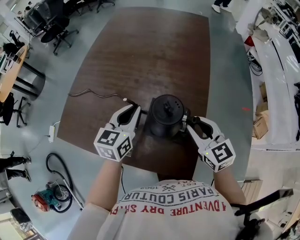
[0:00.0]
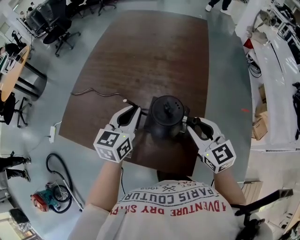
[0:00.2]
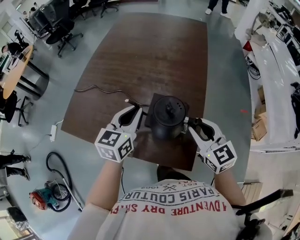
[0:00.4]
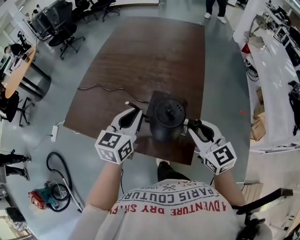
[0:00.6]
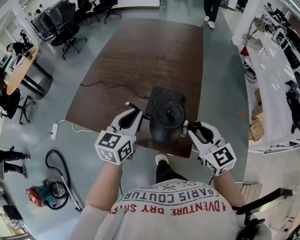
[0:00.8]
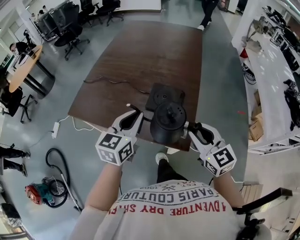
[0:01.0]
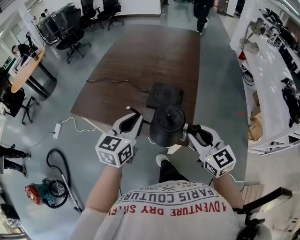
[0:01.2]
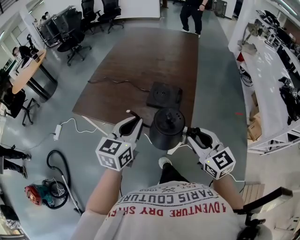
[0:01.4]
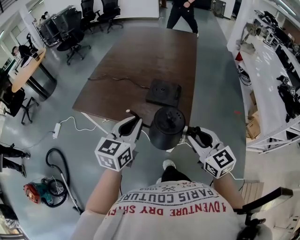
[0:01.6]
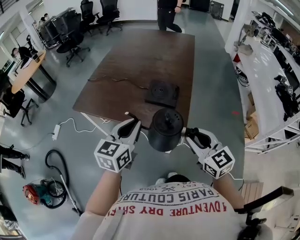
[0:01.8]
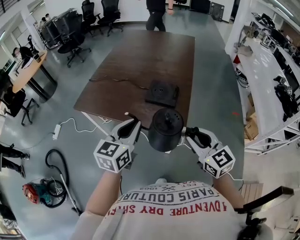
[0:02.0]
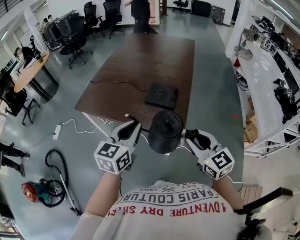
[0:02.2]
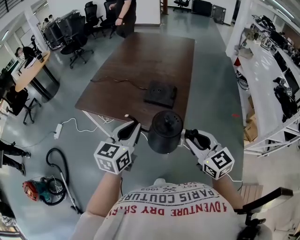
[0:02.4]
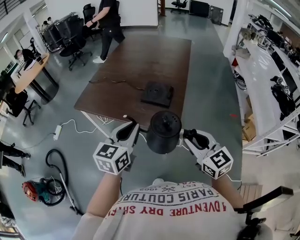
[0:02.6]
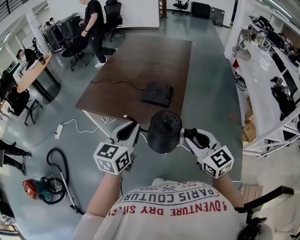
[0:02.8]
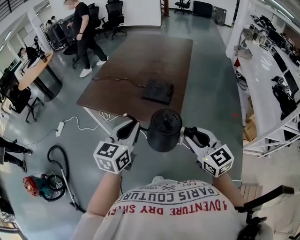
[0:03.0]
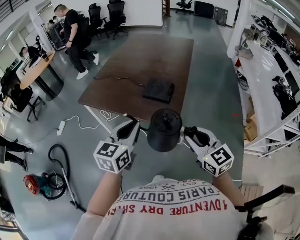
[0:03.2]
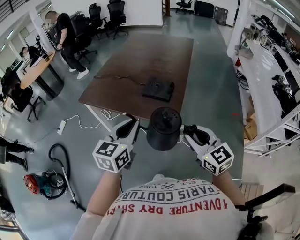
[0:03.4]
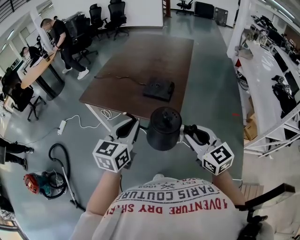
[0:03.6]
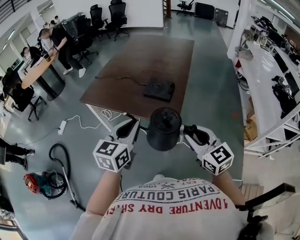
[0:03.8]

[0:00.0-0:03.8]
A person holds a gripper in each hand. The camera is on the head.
0:00.0 to 0:01.2: The grippers both shift backward by about 20 cm.
0:01.2 to 0:02.6: The two grippers go some 10 cm backward.
0:02.6 to 0:03.8: The left gripper heads backward, covering about 5 cm.

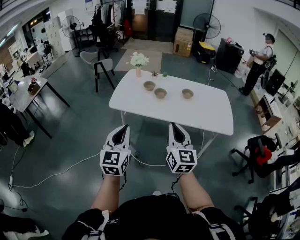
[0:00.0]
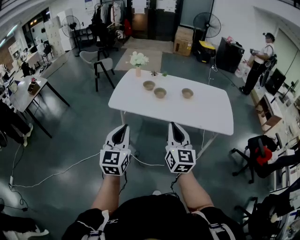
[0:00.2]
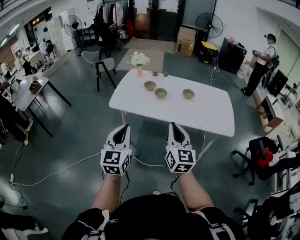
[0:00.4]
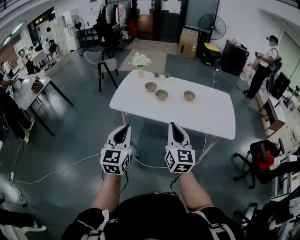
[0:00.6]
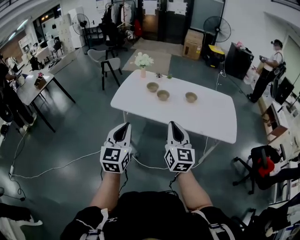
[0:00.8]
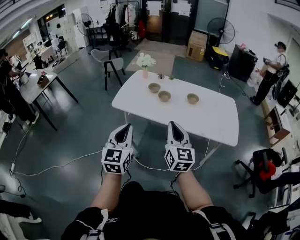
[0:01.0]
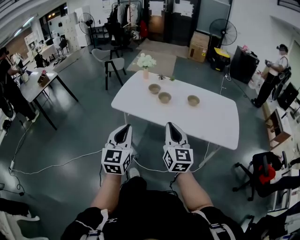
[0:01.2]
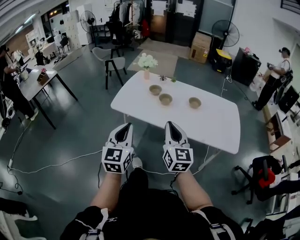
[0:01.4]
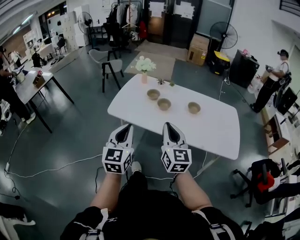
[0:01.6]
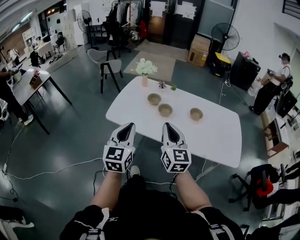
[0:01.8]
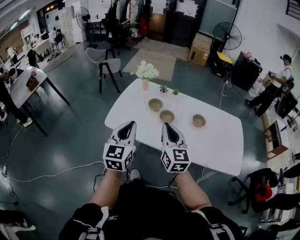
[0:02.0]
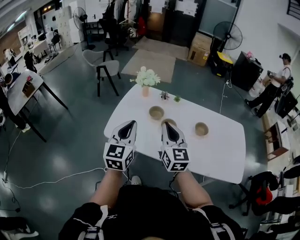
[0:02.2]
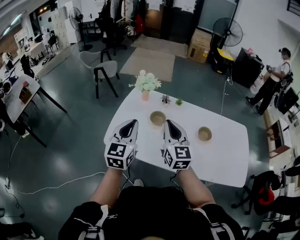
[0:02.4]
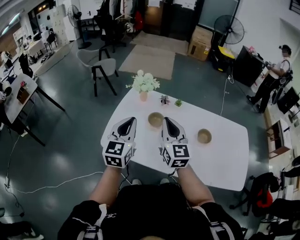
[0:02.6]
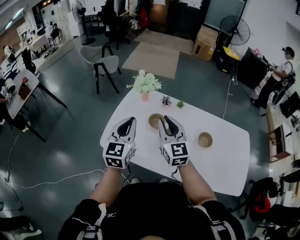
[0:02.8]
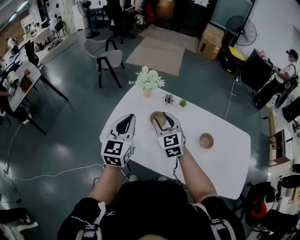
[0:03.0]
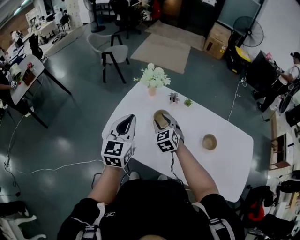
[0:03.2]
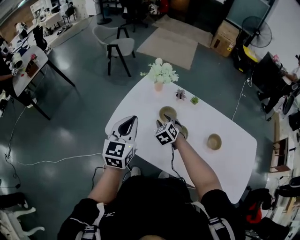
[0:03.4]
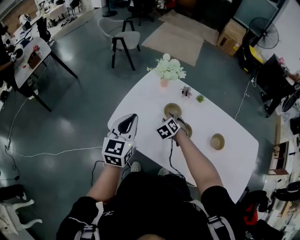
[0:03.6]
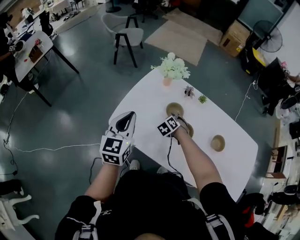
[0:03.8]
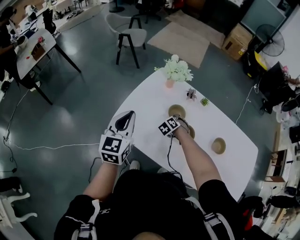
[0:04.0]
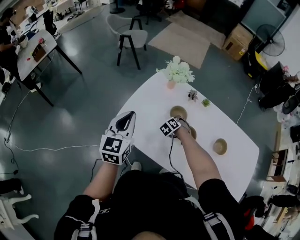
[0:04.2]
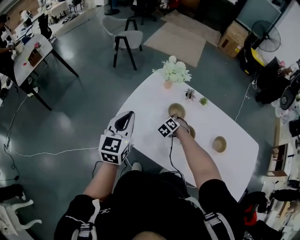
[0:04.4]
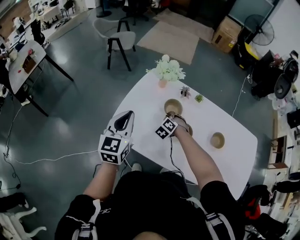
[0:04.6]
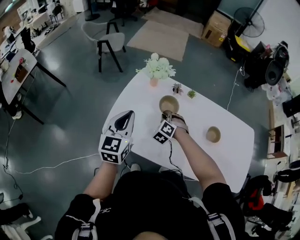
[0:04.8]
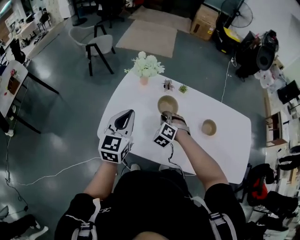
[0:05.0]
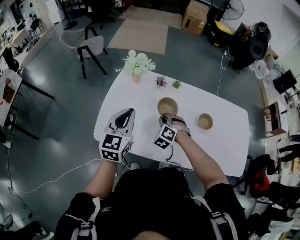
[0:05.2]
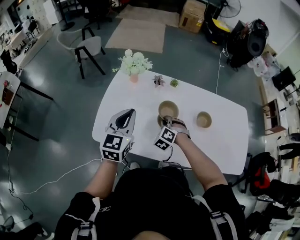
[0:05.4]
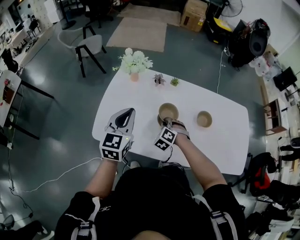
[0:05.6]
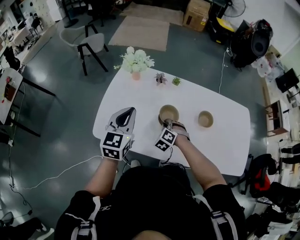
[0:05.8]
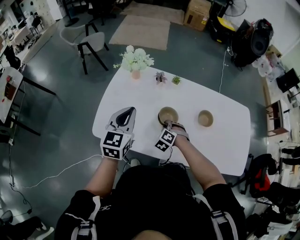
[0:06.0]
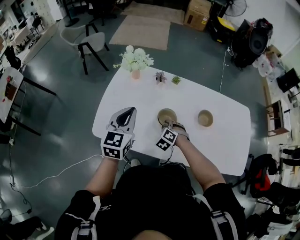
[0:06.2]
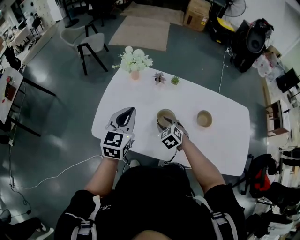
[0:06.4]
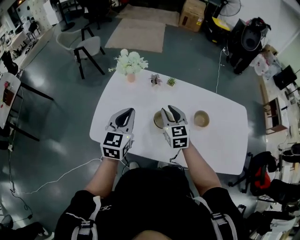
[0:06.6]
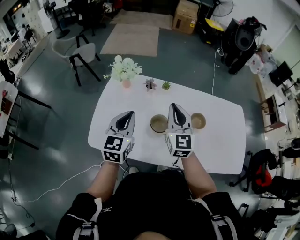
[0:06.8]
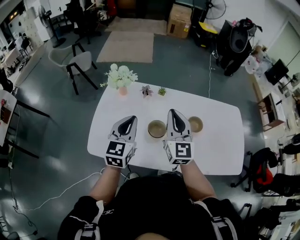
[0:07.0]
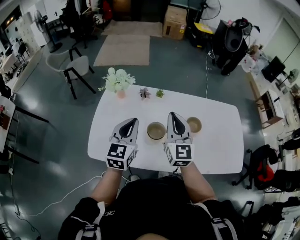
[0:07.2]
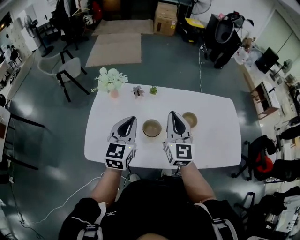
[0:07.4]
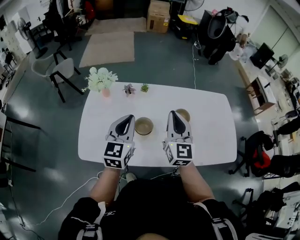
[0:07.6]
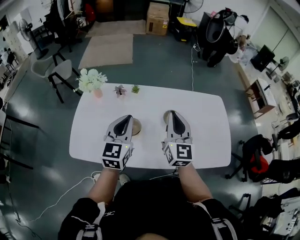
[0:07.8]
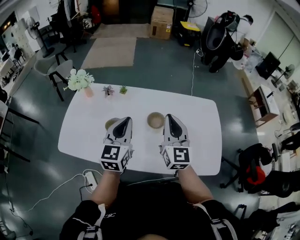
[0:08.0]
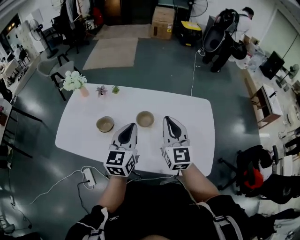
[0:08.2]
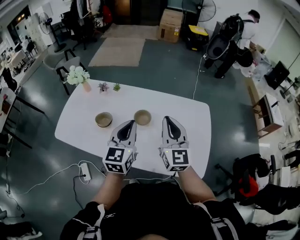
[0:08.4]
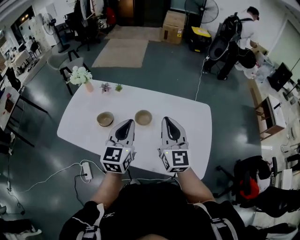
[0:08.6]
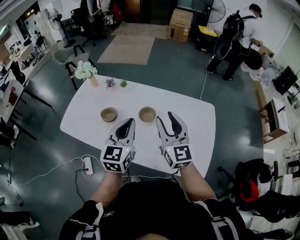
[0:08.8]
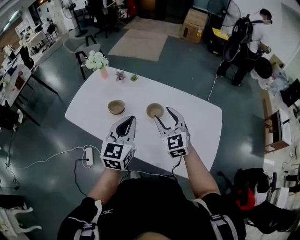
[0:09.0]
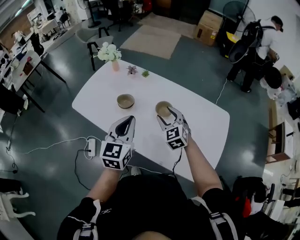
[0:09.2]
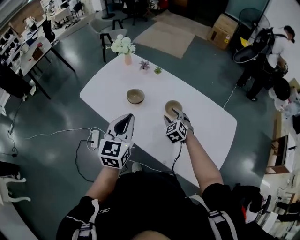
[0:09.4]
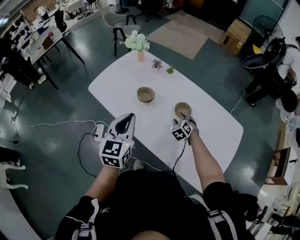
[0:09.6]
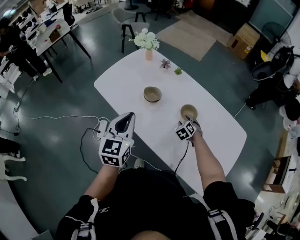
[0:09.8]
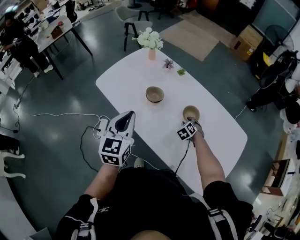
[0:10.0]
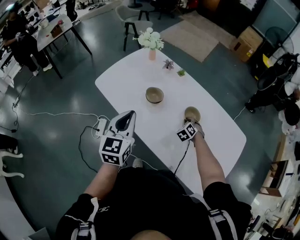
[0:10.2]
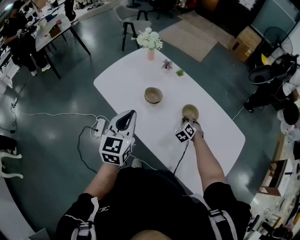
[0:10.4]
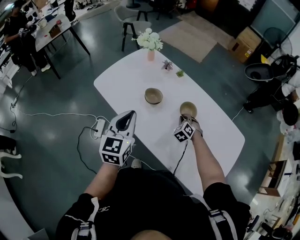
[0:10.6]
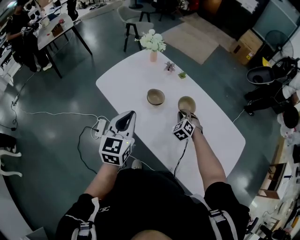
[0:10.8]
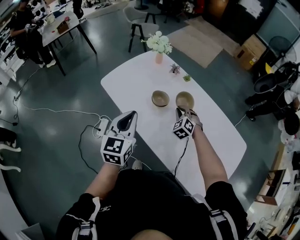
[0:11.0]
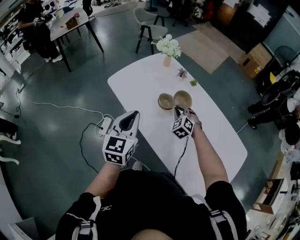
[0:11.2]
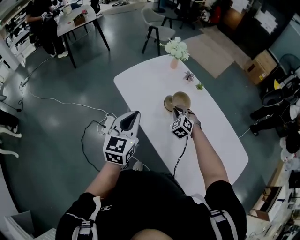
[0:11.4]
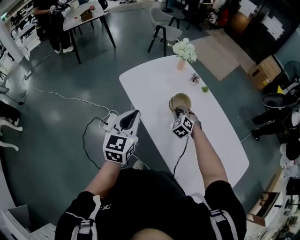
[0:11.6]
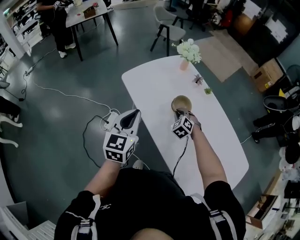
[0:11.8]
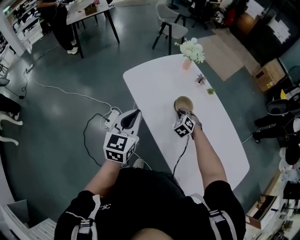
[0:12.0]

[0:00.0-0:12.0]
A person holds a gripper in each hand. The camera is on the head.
0:00.0 to 0:01.6: The left gripper is displaced forward and to the right by approximately 15 cm. The right gripper is displaced forward by about 15 cm.
0:01.6 to 0:03.0: Both grippers are carried forward, some 50 cm. The right gripper turns by approximately 30 degrees, and opens its fingers.
0:03.0 to 0:04.4: The left gripper moves to the left and downward, approximately 15 cm; the right gripper travels downward by about 25 cm, tips its fingers downward by approximately 40 degrees, and closes its fingers.
0:04.4 to 0:06.0: The right gripper goes about 15 cm to the right and backward. The left gripper is displaced to the right and forward by approximately 15 cm.
0:06.0 to 0:07.6: The left gripper moves to the right, about 10 cm. The right gripper is displaced upward and to the right by roughly 35 cm, tips its fingers upward by about 60 degrees, and opens, then closes once more.
0:07.6 to 0:09.0: The left gripper shifts by roughly 35 cm, and rotates roughly 20 degrees. The right gripper moves approximately 30 cm, changes its angle by some 40 degrees, and opens.
0:09.0 to 0:10.4: The left gripper travels to the left by about 20 cm, and turns by approximately 20 degrees. The right gripper heads downward and forward, covering some 30 cm, points its fingers about 40 degrees further downward, and closes its fingers.
0:10.4 to 0:12.0: The left gripper goes approximately 15 cm to the left, while the right gripper heads to the left, covering roughly 25 cm, and changes its angle by some 20 degrees.

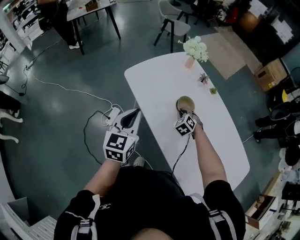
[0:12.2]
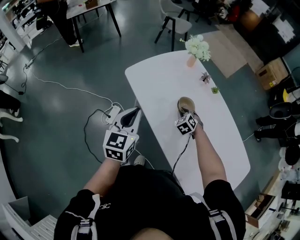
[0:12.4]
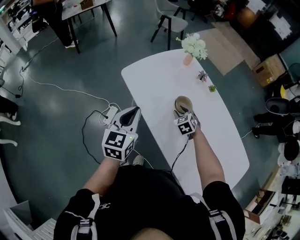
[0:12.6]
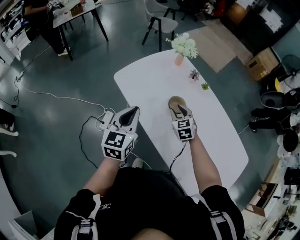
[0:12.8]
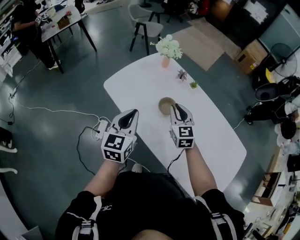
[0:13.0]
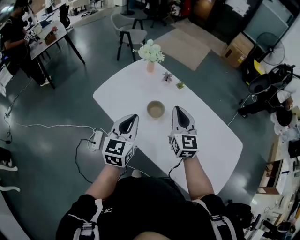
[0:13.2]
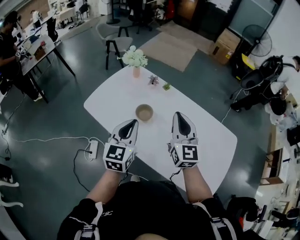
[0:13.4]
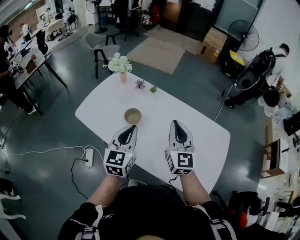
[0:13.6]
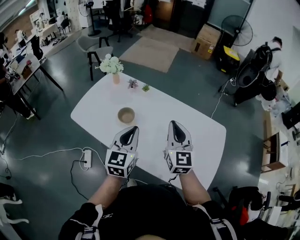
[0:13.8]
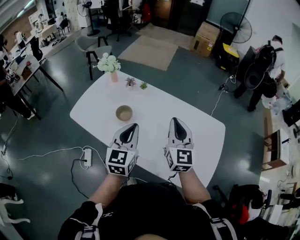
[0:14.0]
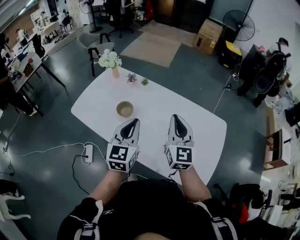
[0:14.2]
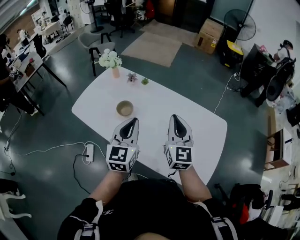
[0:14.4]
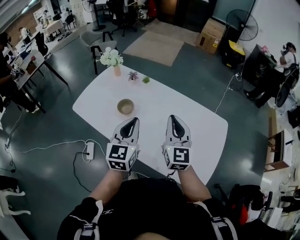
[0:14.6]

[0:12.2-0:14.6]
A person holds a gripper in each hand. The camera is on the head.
0:12.2 to 0:13.4: The left gripper moves to the right, some 15 cm, and changes its angle by about 20 degrees, while the right gripper travels upward, to the right and backward by approximately 40 cm, points its fingers some 50 degrees further upward, and opens, then closes once more.
0:13.4 to 0:14.6: The grippers both shift to the right by roughly 15 cm.

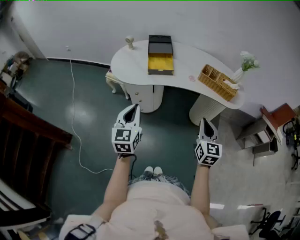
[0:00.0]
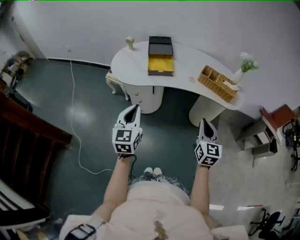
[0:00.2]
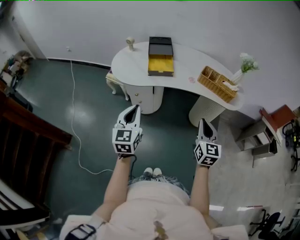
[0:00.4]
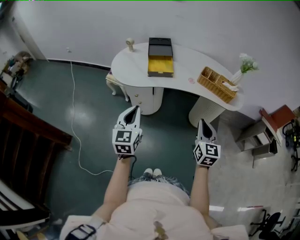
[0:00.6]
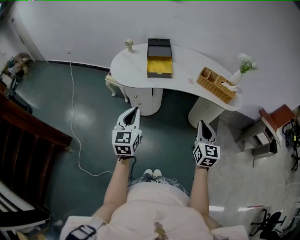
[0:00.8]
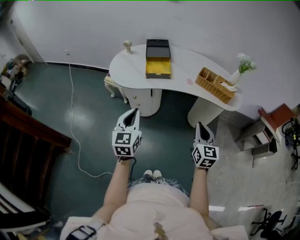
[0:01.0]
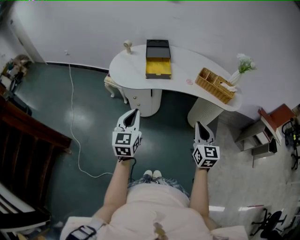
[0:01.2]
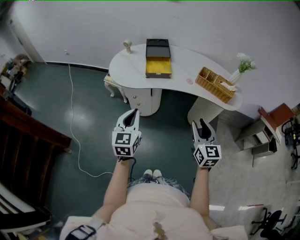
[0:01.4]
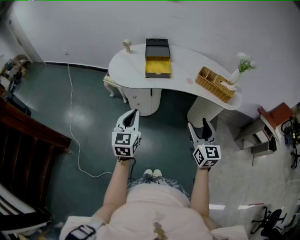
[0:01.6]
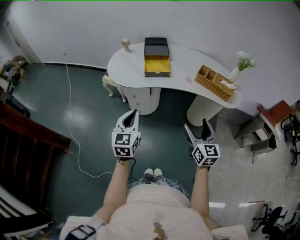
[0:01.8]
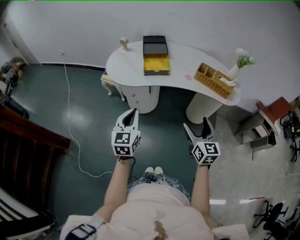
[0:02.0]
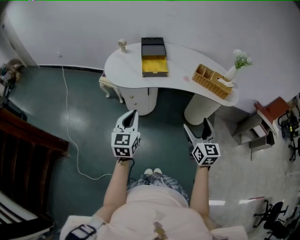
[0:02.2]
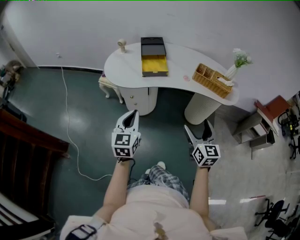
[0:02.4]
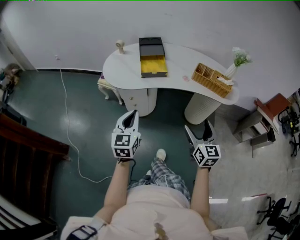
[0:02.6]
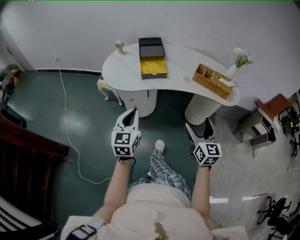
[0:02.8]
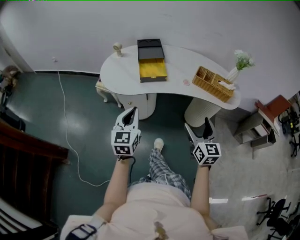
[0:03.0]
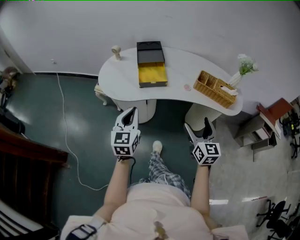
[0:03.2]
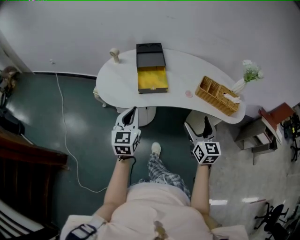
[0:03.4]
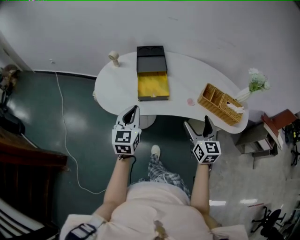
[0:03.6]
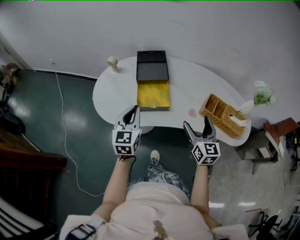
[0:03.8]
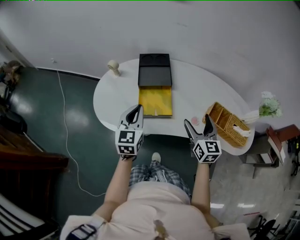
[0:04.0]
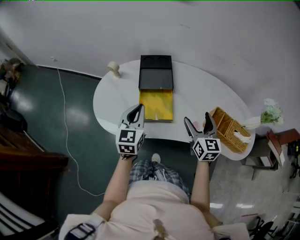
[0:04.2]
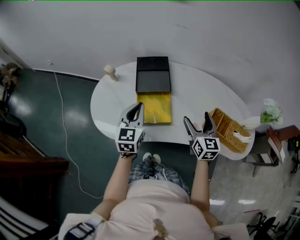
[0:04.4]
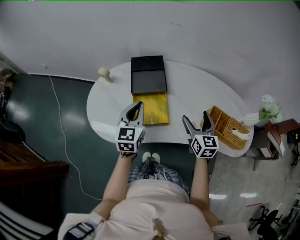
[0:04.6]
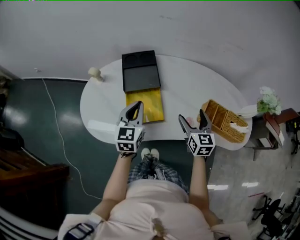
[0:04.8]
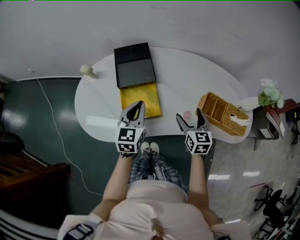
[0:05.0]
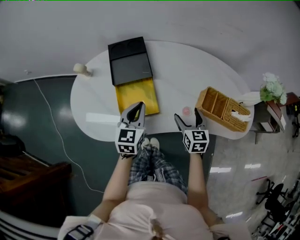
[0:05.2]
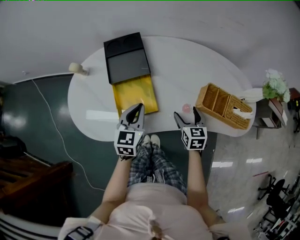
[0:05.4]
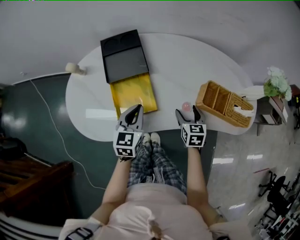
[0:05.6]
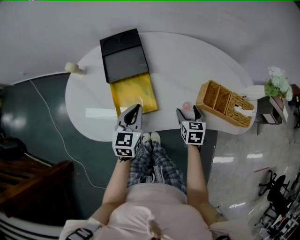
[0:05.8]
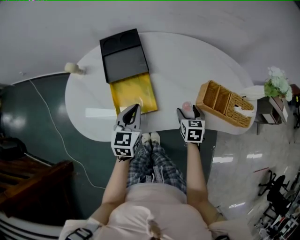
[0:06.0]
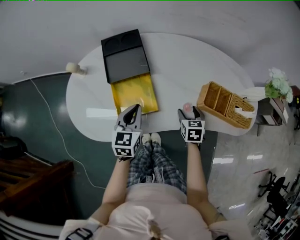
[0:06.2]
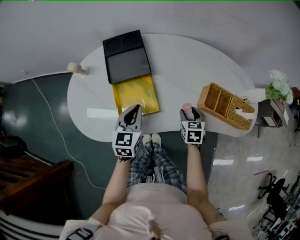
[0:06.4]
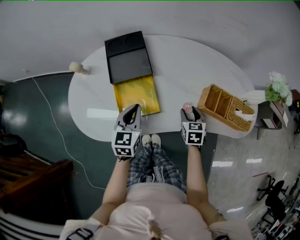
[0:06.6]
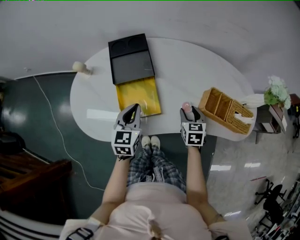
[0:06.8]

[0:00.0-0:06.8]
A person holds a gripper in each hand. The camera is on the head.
0:00.0 to 0:01.4: The grippers make only small movements.
0:01.4 to 0:02.8: The right gripper opens.
0:02.8 to 0:04.0: Both grippers move forward, some 40 cm.
0:04.0 to 0:05.4: The left gripper goes some 15 cm downward, to the right and forward, and turns by approximately 20 degrees. The right gripper is displaced downward by about 15 cm, and swivels approximately 30 degrees.
0:05.4 to 0:06.8: The right gripper closes.
